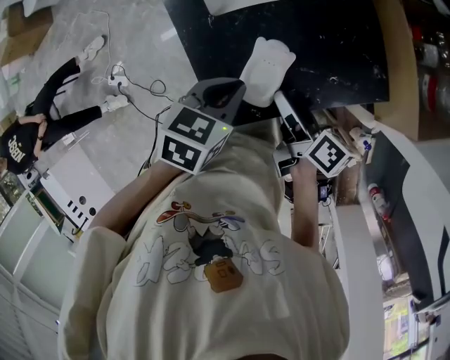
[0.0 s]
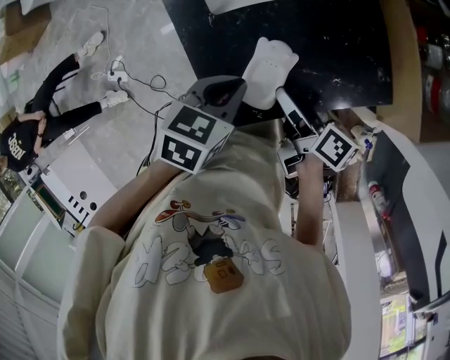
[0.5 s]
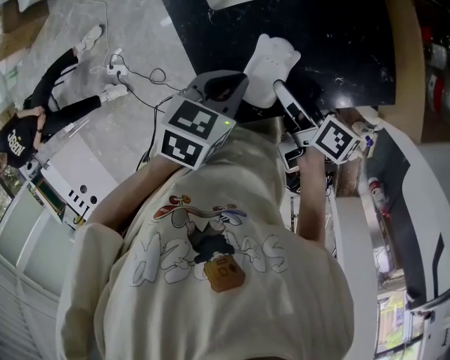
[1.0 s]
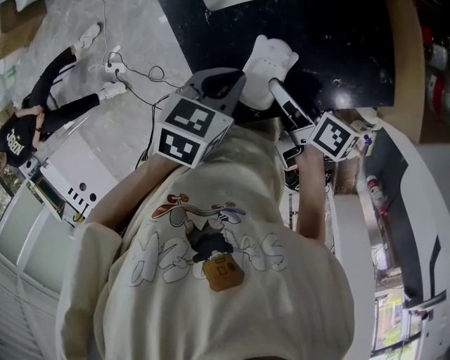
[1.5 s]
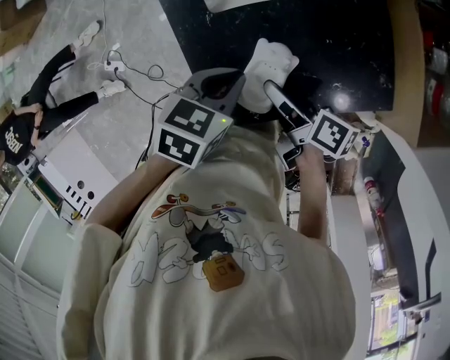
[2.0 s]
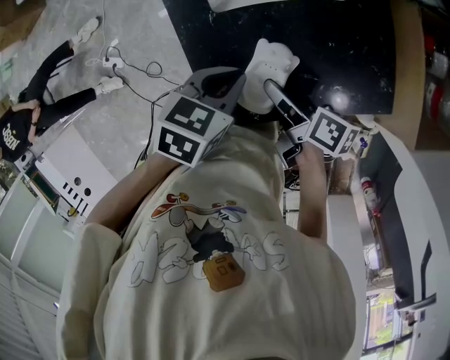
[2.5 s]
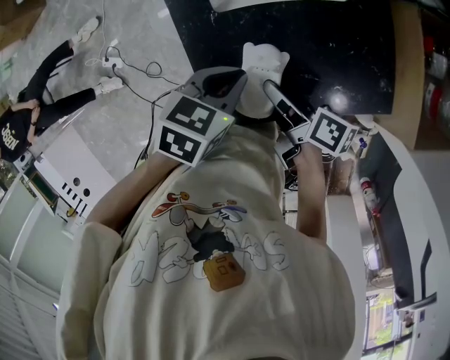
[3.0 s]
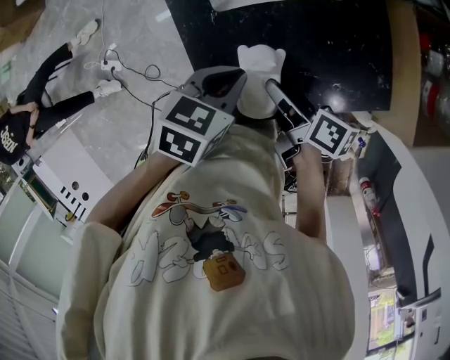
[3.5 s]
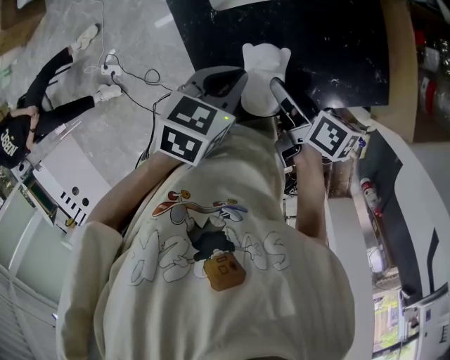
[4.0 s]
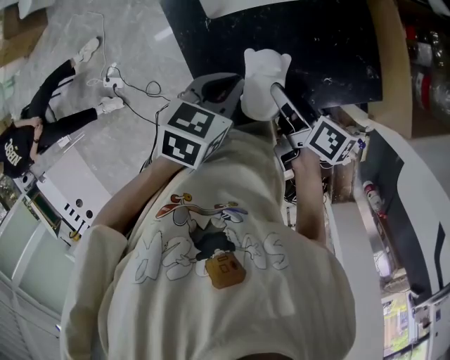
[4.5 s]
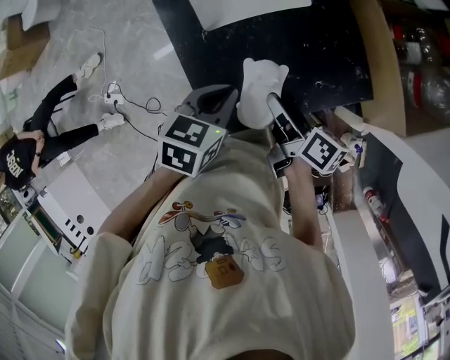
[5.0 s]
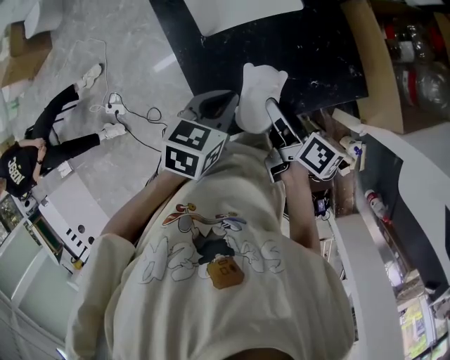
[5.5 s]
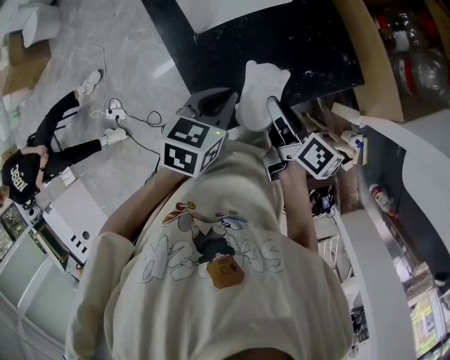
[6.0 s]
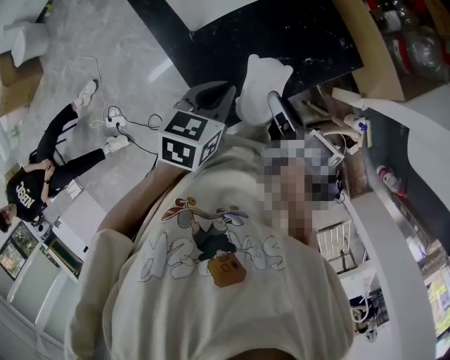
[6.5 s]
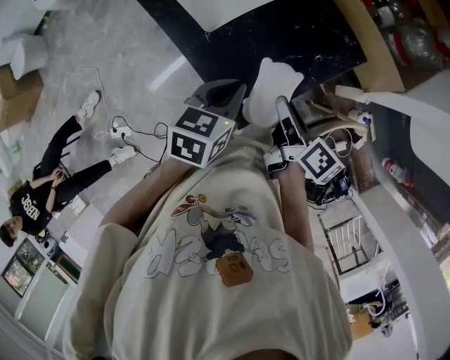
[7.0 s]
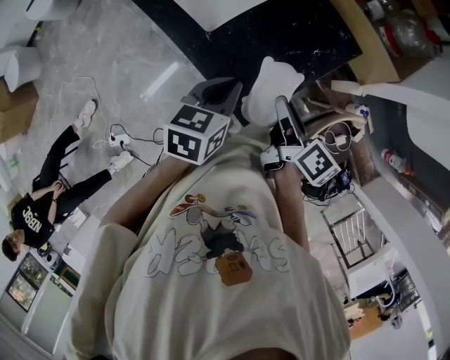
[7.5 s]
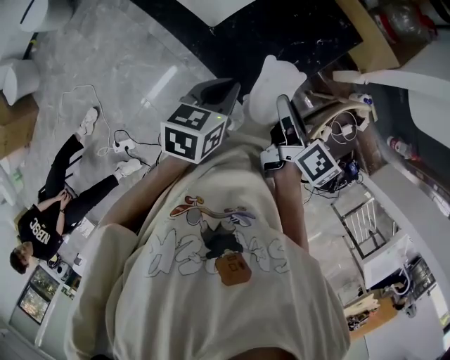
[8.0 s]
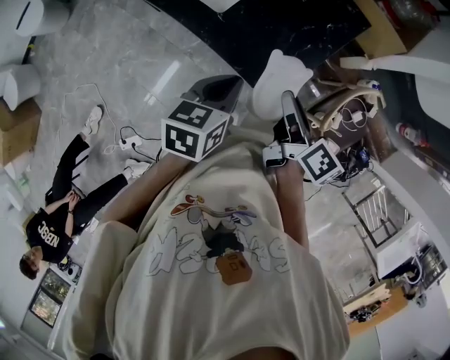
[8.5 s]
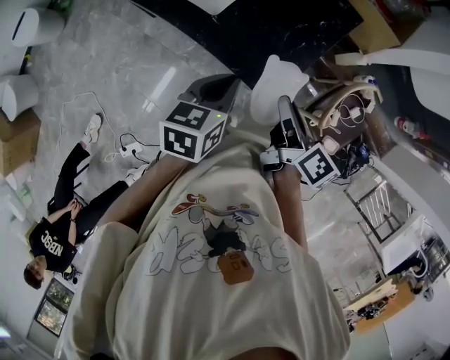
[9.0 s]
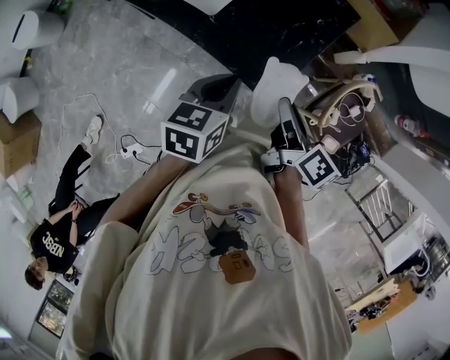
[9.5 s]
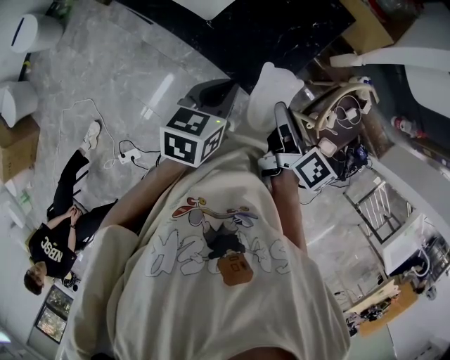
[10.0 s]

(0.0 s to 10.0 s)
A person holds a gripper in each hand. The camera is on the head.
0.0 s - 2.0 s: The grippers move only a little.
2.0 s - 4.0 s: The right gripper closes up.
4.0 s - 6.0 s: The right gripper heads upward, backward and to the right, covering roughly 10 cm, and swivels about 20 degrees. Meanwhile the left gripper ends up some 5 cm from where it was.
6.0 s - 8.0 s: The left gripper moves to the left and backward, about 10 cm. Meanwhile the right gripper heads backward, to the left and upward, covering roughly 15 cm, and rotates roughly 30 degrees.
8.0 s - 10.0 s: The right gripper is displaced backward by about 5 cm.

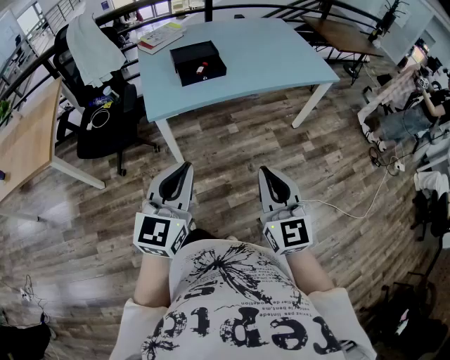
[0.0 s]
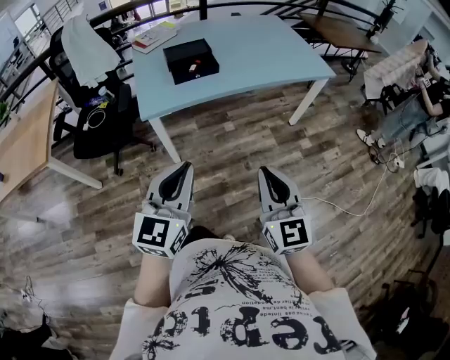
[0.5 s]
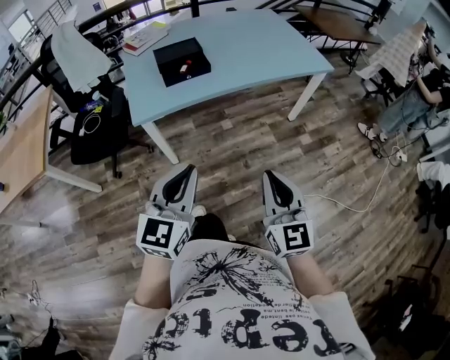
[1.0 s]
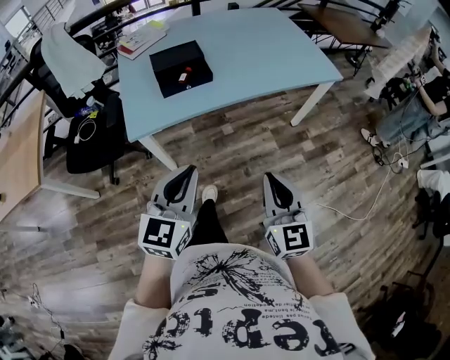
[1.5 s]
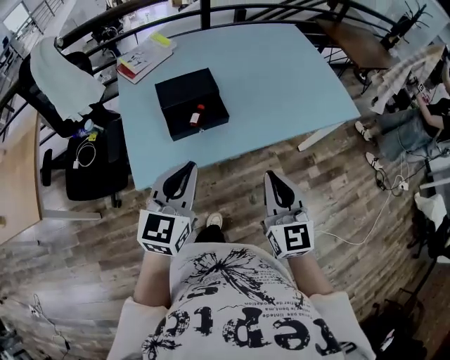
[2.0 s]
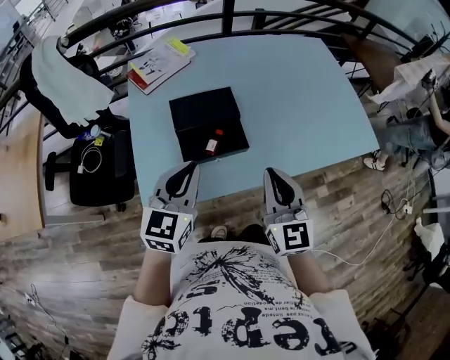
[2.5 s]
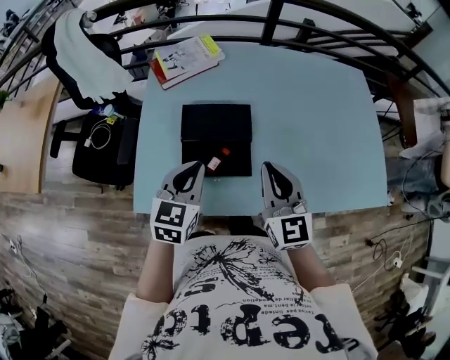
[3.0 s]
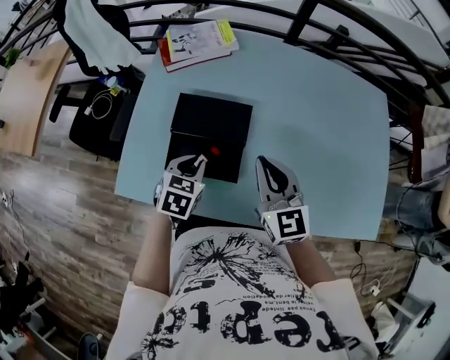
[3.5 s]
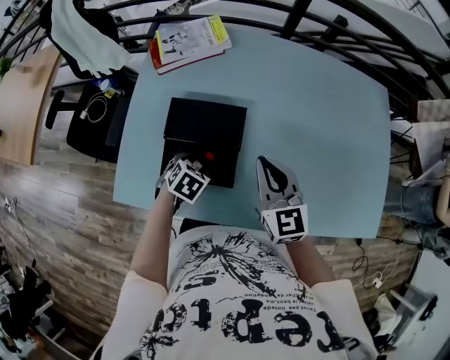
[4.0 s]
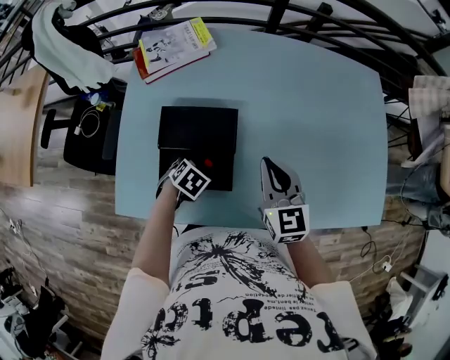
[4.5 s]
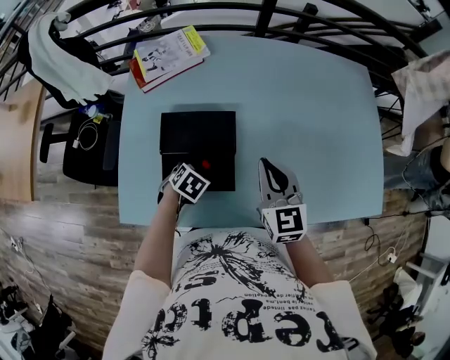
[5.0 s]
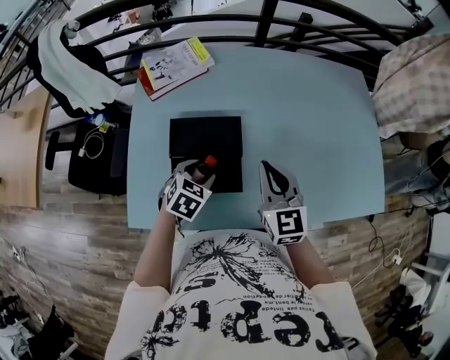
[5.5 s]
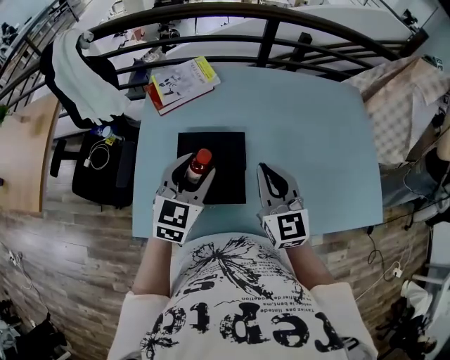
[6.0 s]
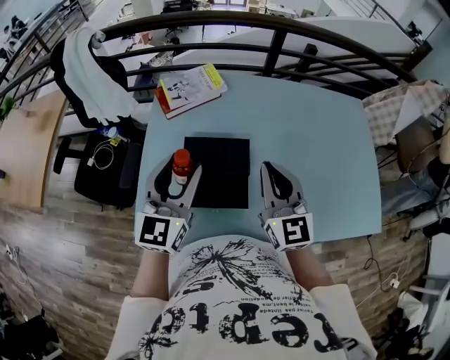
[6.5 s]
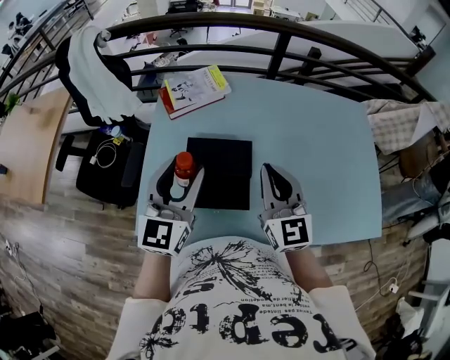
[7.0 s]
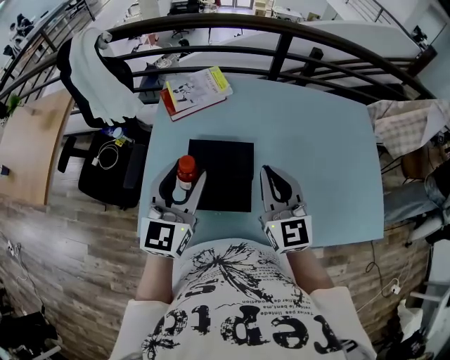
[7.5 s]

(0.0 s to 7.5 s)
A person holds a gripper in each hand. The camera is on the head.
0.0 s - 2.0 s: Both grippers travel together forward, about 40 cm.
2.0 s - 4.0 s: The left gripper shifts by roughly 40 cm, tilts its fingers about 60 degrees downward, and opens its fingers. Meanwhile the right gripper moves some 40 cm, and turns by some 30 degrees.
4.0 s - 5.5 s: The left gripper is displaced upward by about 10 cm.
5.5 s - 7.5 s: The left gripper shifts about 25 cm upward, and points its fingers roughly 50 degrees further upward. Meanwhile the right gripper heads upward, covering about 10 cm.

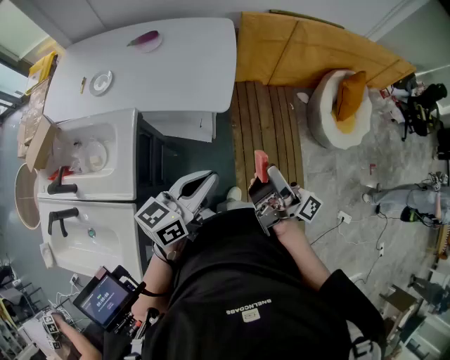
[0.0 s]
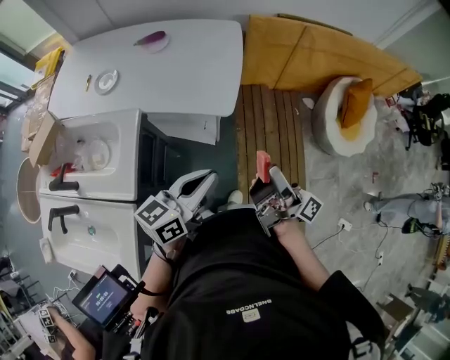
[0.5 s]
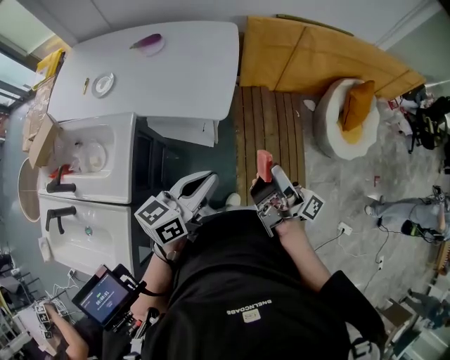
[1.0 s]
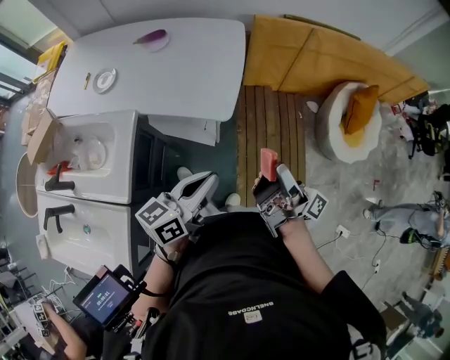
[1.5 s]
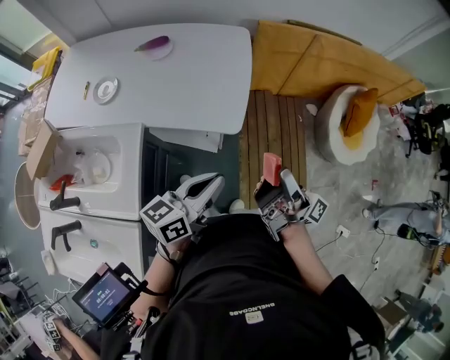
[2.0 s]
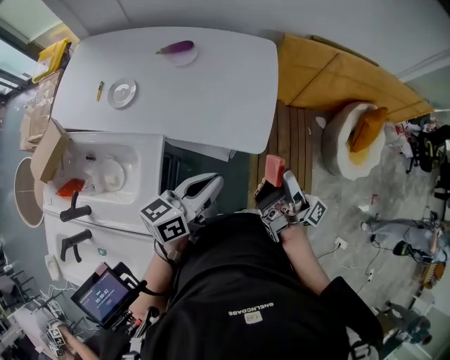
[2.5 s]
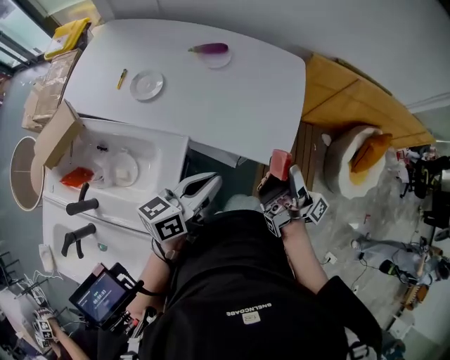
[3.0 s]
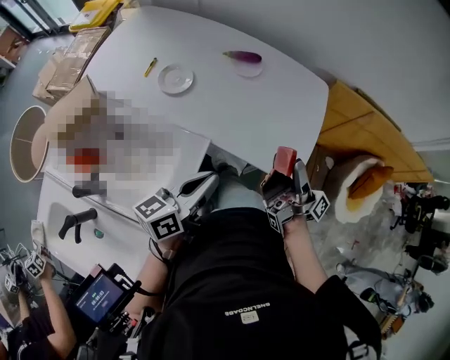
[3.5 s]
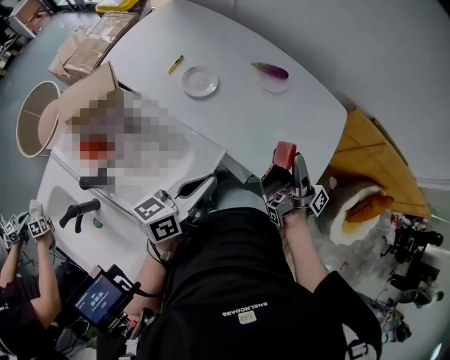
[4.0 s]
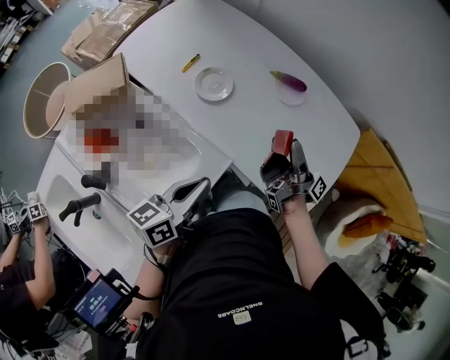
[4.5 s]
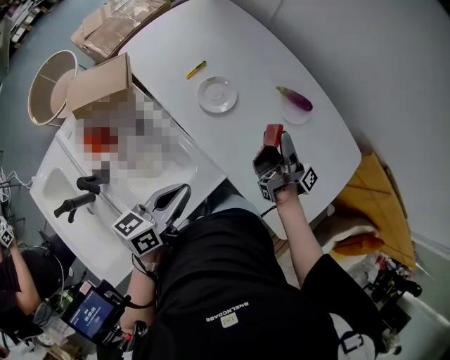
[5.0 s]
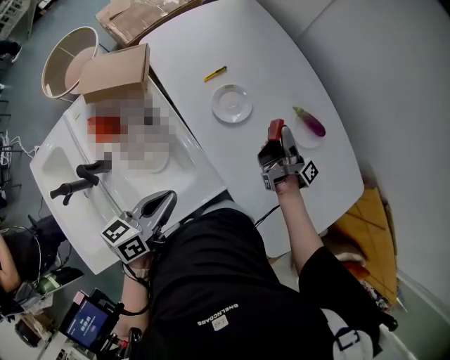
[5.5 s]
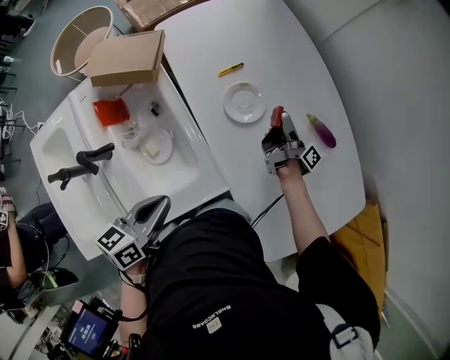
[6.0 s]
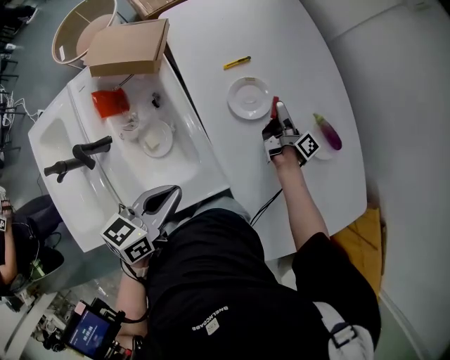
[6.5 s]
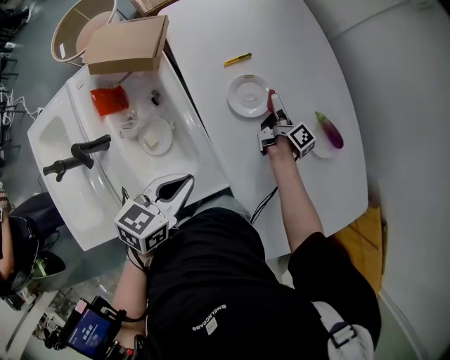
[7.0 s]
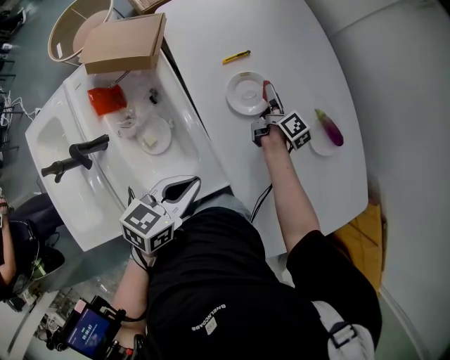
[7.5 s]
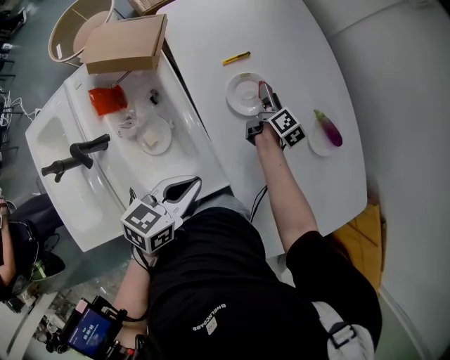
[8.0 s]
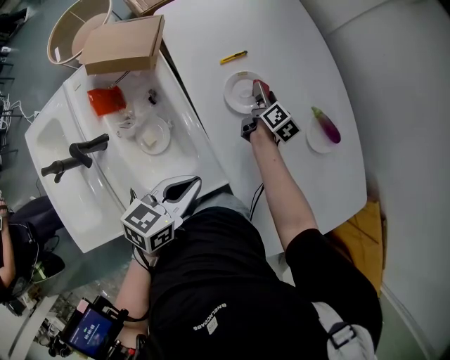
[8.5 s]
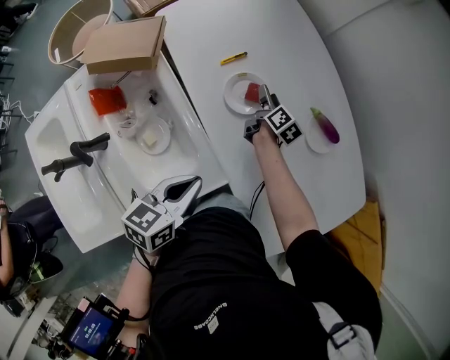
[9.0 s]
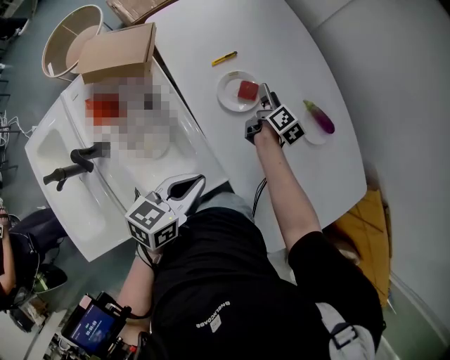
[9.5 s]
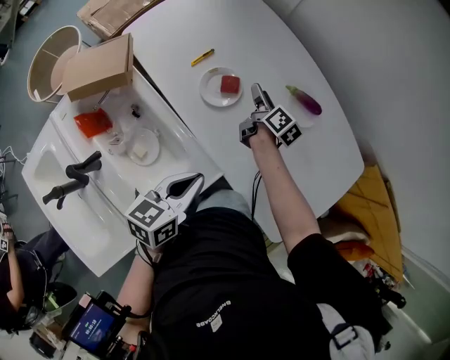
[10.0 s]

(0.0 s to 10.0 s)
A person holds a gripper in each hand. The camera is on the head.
0.0 s - 2.0 s: The left gripper changes place by about 10 cm.
2.0 s - 4.0 s: The left gripper shifts by roughly 35 cm, and changes its angle by some 30 degrees.
4.0 s - 6.0 s: The left gripper changes place by roughly 10 cm, and rotates approximately 40 degrees.
6.0 s - 8.0 s: The left gripper changes place by about 10 cm.
